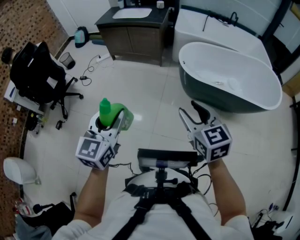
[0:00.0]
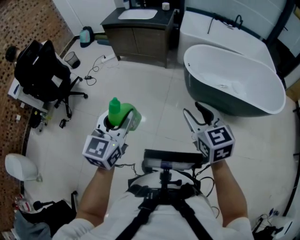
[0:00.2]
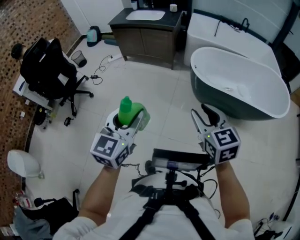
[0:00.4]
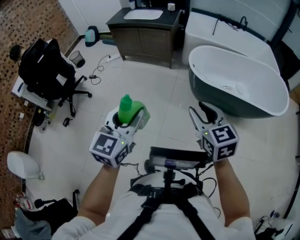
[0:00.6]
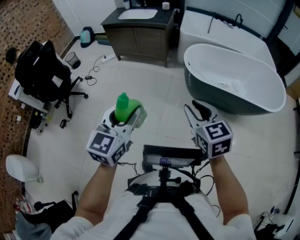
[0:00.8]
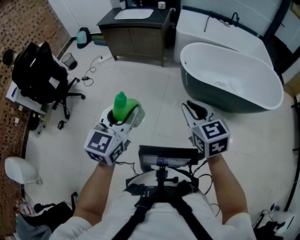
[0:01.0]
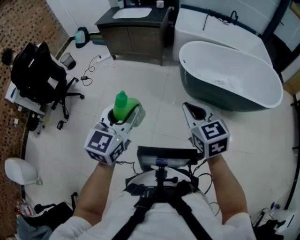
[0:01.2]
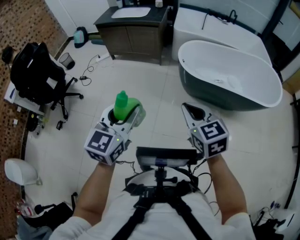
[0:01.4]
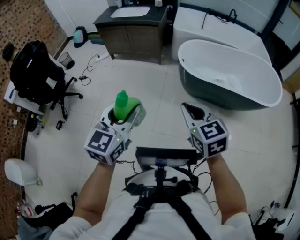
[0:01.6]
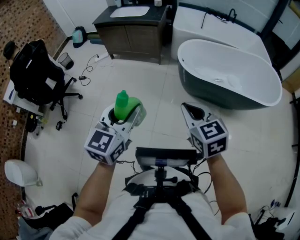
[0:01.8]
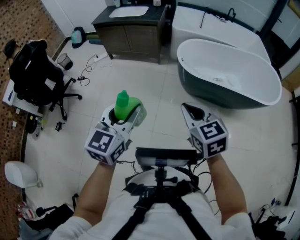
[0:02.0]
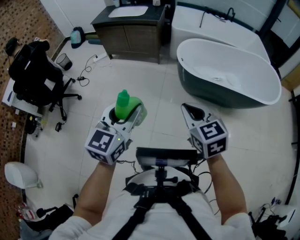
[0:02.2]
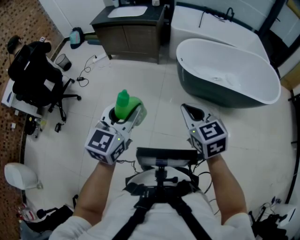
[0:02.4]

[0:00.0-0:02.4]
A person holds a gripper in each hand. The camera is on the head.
0:00.0 to 0:01.2: The right gripper closes; the left gripper shifts some 5 cm to the right.
0:01.2 to 0:02.4: The grippers move only a little.

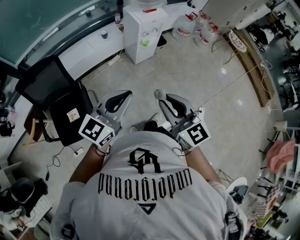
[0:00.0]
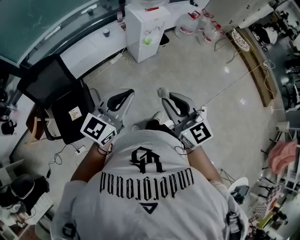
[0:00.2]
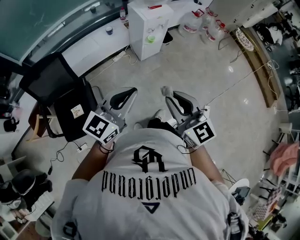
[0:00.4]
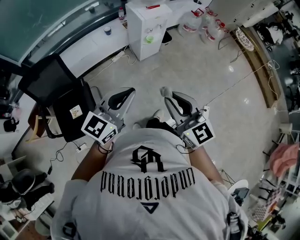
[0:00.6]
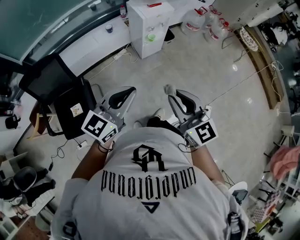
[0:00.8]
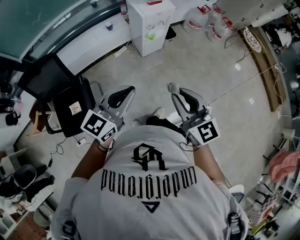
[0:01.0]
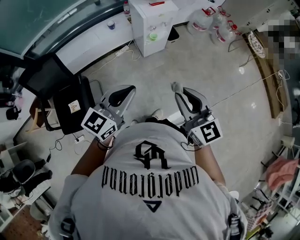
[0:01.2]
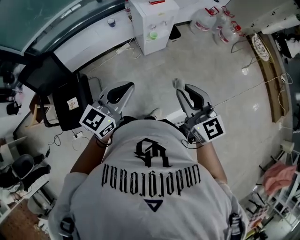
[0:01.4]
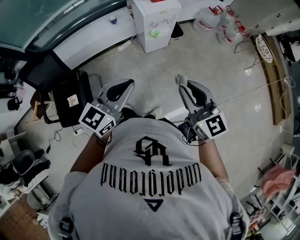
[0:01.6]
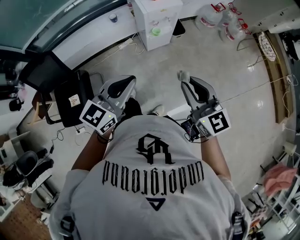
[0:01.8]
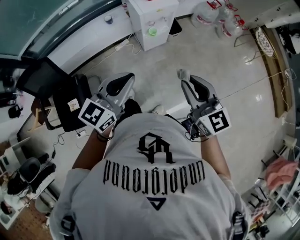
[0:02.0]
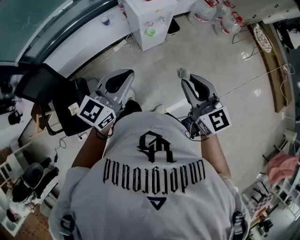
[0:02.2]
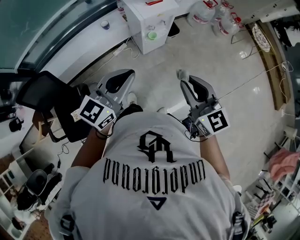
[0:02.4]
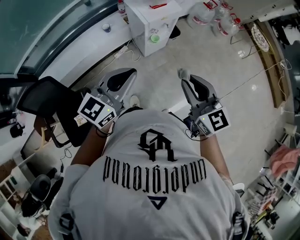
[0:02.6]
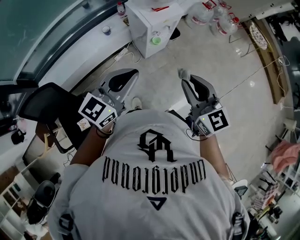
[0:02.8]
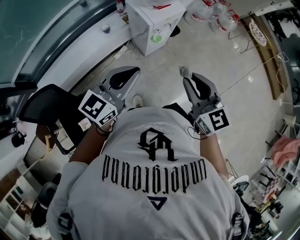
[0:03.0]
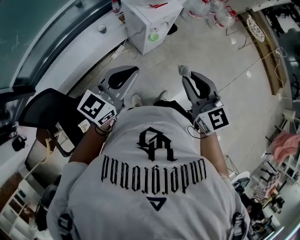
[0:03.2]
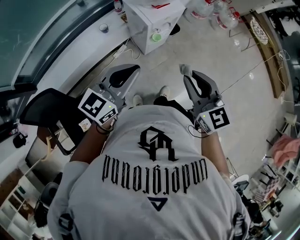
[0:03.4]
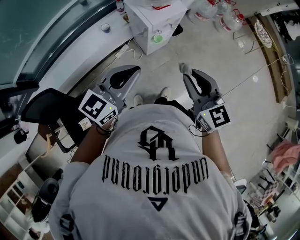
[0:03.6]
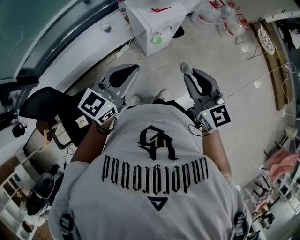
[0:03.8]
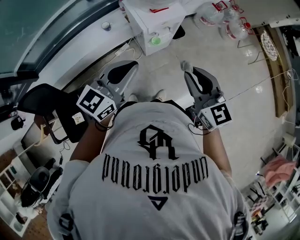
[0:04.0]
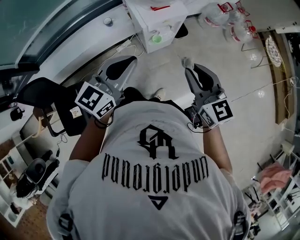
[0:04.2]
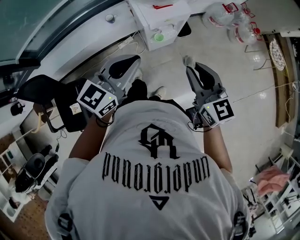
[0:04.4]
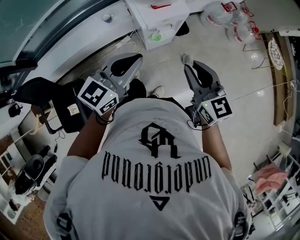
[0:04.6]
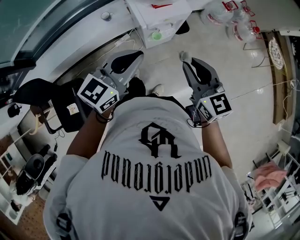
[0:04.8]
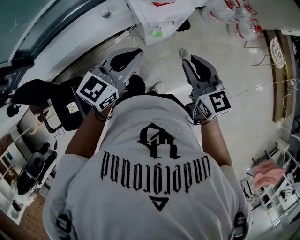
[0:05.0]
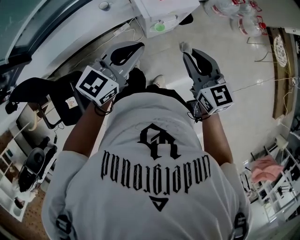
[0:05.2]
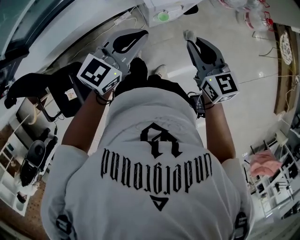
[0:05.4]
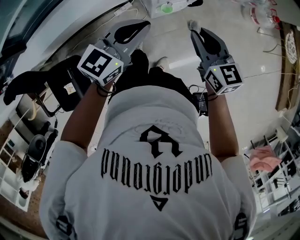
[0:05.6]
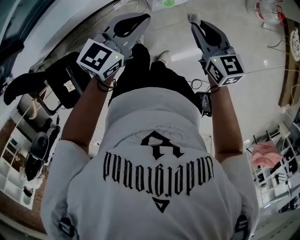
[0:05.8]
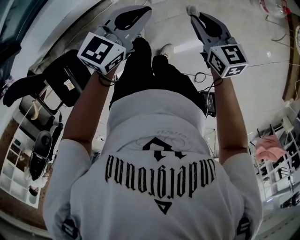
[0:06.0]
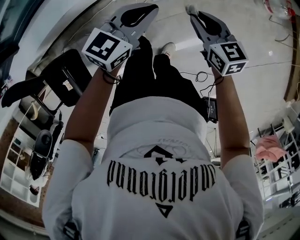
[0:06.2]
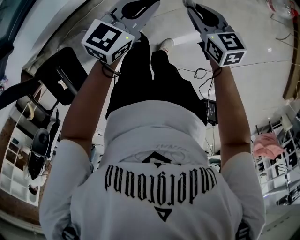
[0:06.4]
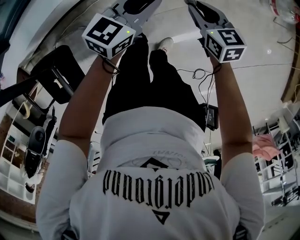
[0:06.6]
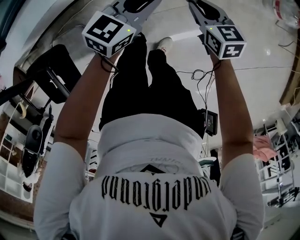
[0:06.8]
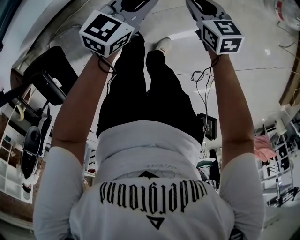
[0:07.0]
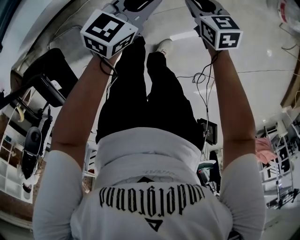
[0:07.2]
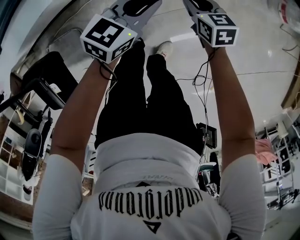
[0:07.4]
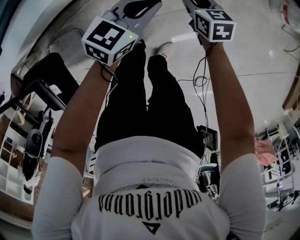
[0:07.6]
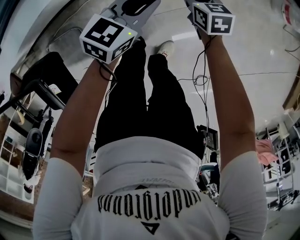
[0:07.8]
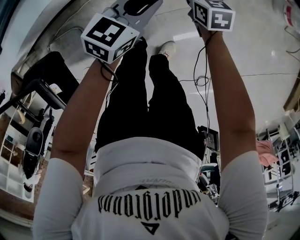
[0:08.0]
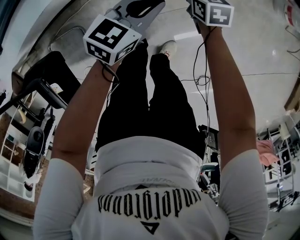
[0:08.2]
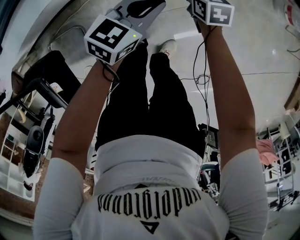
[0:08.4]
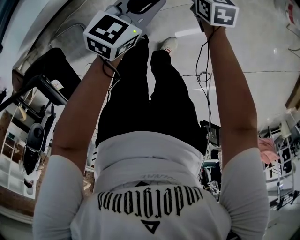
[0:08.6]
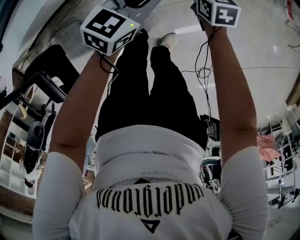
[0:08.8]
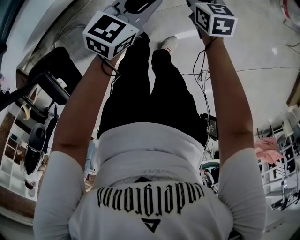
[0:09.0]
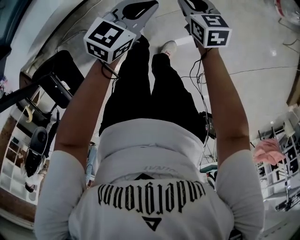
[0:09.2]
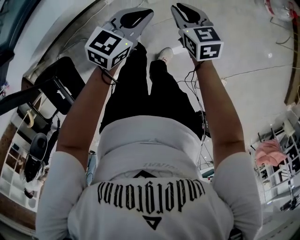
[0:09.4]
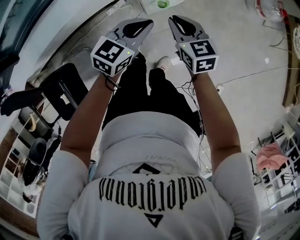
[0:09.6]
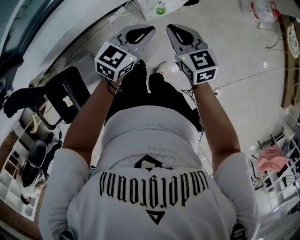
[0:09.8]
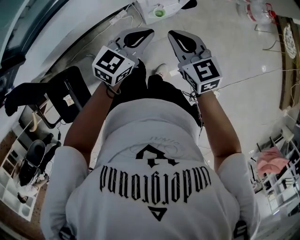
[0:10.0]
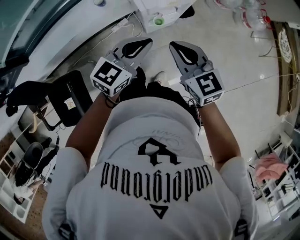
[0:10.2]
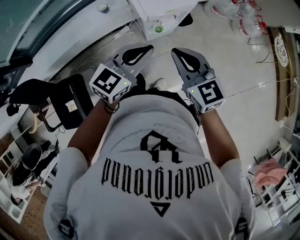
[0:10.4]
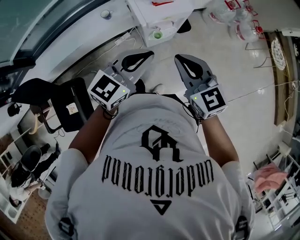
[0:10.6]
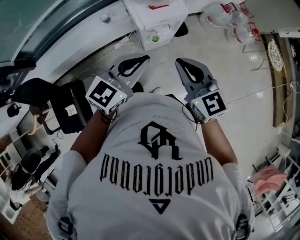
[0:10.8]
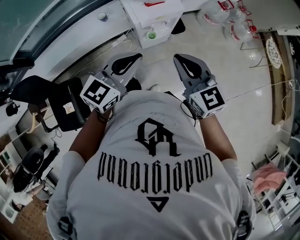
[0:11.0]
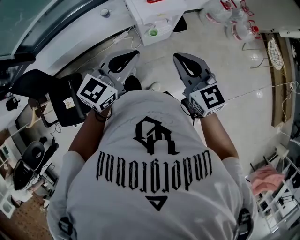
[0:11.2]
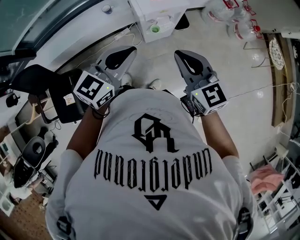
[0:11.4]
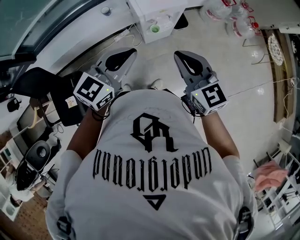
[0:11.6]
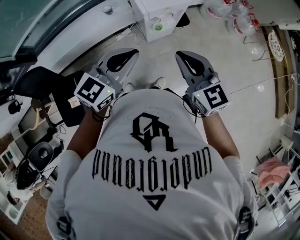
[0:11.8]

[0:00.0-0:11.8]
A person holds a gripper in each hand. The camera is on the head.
0:00.0 to 0:01.4: The left gripper goes roughly 15 cm forward and to the right, while the right gripper shifts roughly 20 cm to the right and forward.
0:01.4 to 0:03.0: Both grippers travel together forward and to the left, roughly 25 cm.
0:03.0 to 0:04.4: The grippers both shift forward and to the right by some 15 cm.
0:04.4 to 0:06.0: The two grippers go approximately 25 cm downward and forward.
0:06.0 to 0:07.4: Both grippers move downward, roughly 25 cm.
0:08.8 to 0:10.4: The right gripper travels upward and backward by about 50 cm, swivels some 30 degrees, and closes its fingers. Meanwhile the left gripper shifts approximately 35 cm upward.
0:10.4 to 0:11.8: The two grippers go some 10 cm backward and upward.

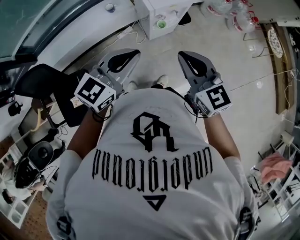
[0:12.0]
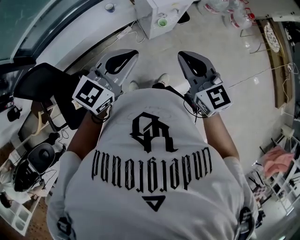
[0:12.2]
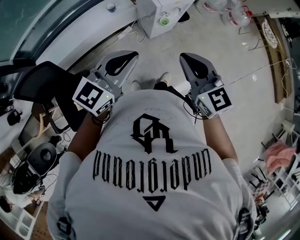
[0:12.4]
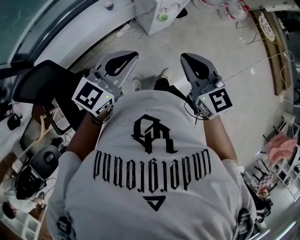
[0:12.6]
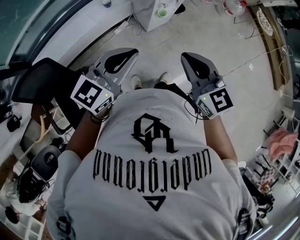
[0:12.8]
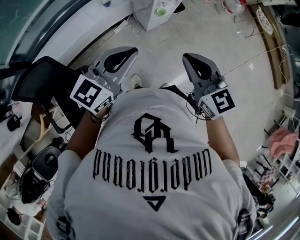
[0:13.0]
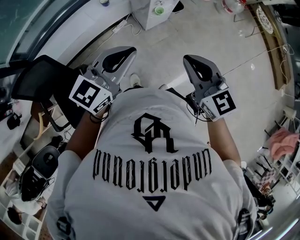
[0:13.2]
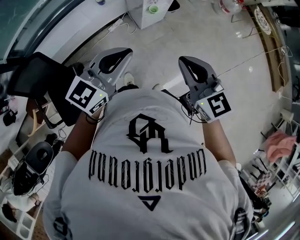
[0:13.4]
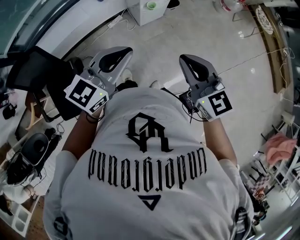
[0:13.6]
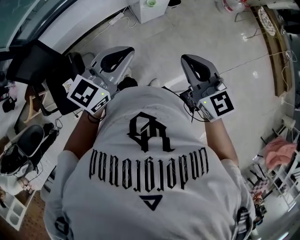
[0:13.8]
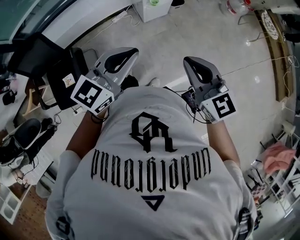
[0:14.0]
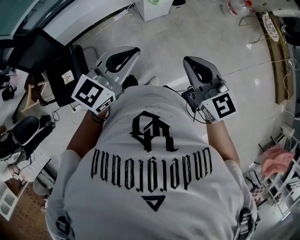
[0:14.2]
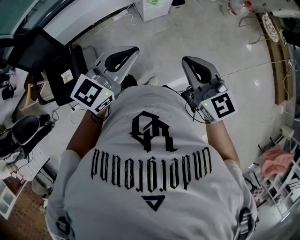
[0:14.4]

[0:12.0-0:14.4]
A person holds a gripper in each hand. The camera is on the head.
0:12.0 to 0:13.2: The right gripper is displaced backward by approximately 15 cm. Meanwhile the left gripper heads backward and to the left, covering approximately 15 cm.
0:13.2 to 0:14.4: The two grippers go about 20 cm to the right and backward.

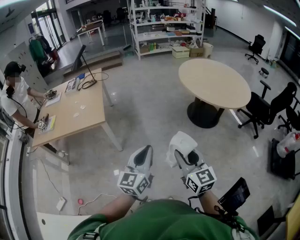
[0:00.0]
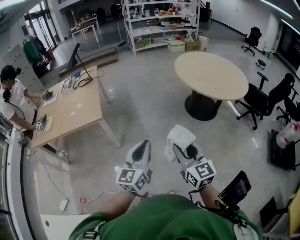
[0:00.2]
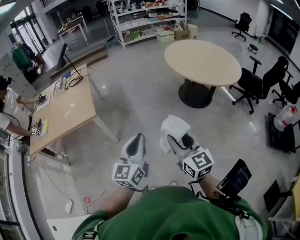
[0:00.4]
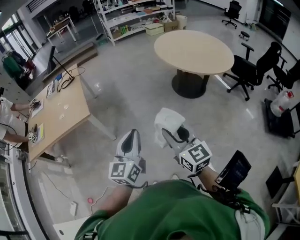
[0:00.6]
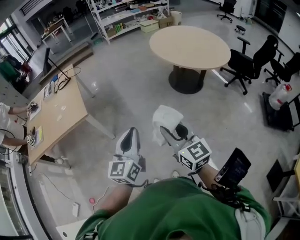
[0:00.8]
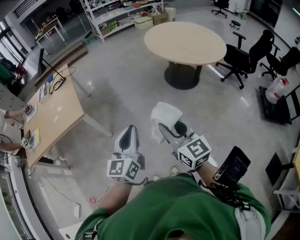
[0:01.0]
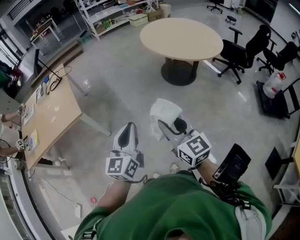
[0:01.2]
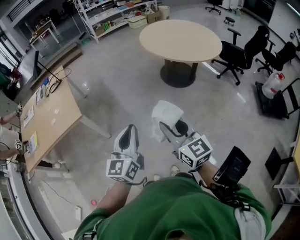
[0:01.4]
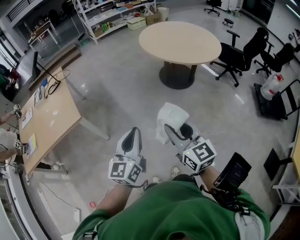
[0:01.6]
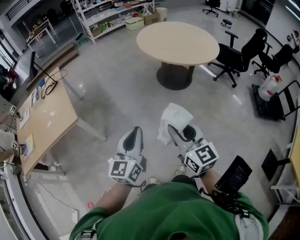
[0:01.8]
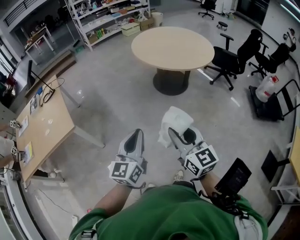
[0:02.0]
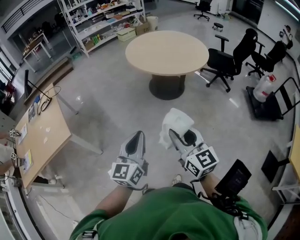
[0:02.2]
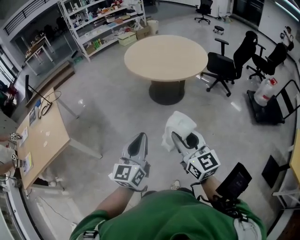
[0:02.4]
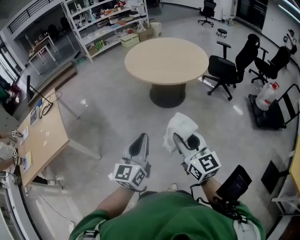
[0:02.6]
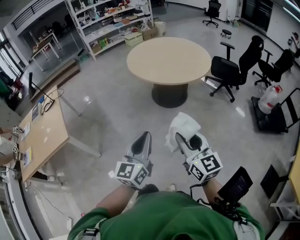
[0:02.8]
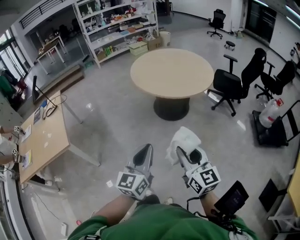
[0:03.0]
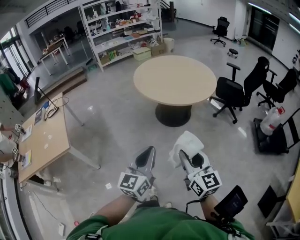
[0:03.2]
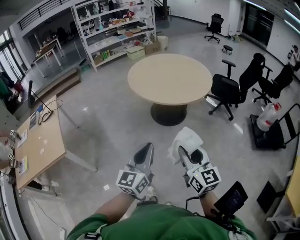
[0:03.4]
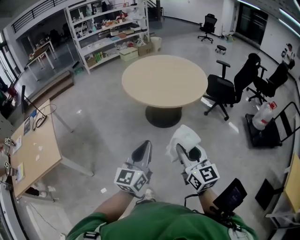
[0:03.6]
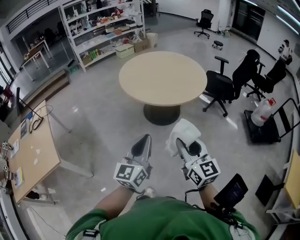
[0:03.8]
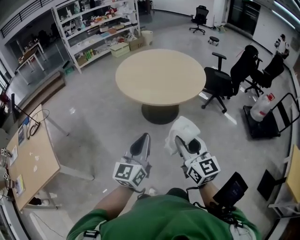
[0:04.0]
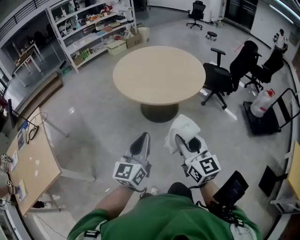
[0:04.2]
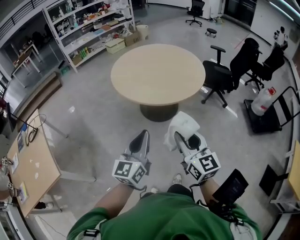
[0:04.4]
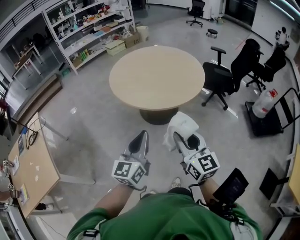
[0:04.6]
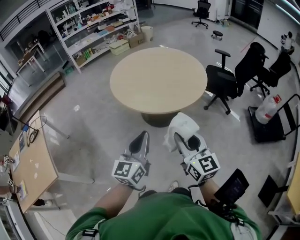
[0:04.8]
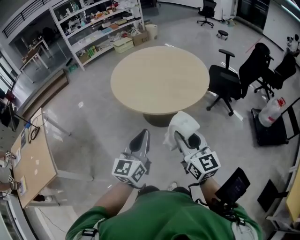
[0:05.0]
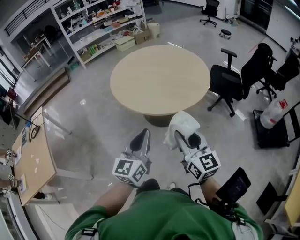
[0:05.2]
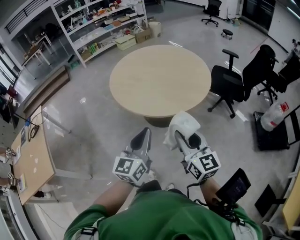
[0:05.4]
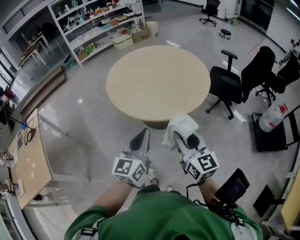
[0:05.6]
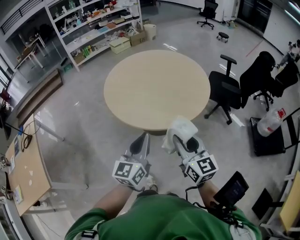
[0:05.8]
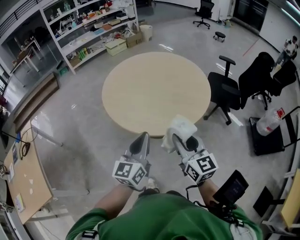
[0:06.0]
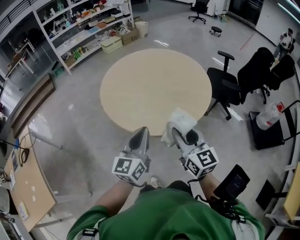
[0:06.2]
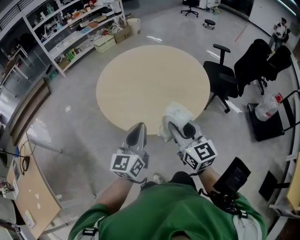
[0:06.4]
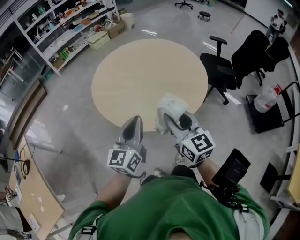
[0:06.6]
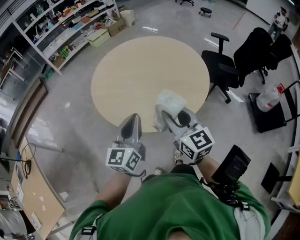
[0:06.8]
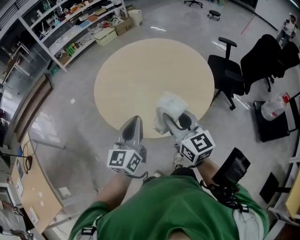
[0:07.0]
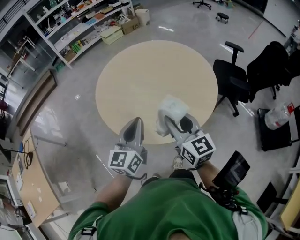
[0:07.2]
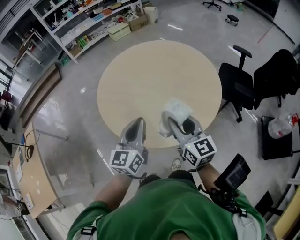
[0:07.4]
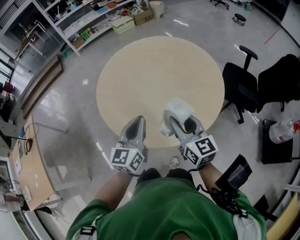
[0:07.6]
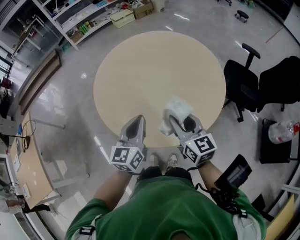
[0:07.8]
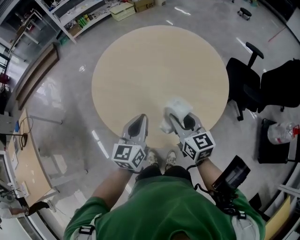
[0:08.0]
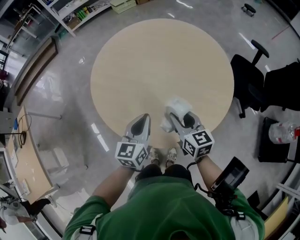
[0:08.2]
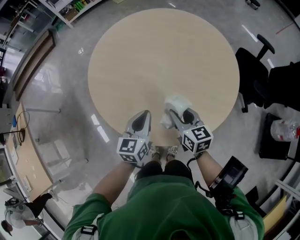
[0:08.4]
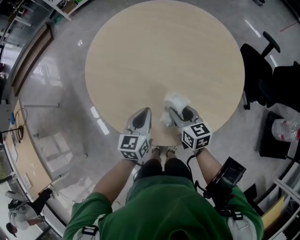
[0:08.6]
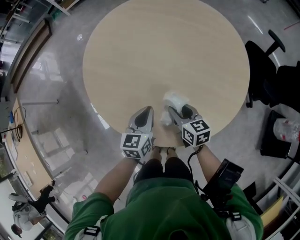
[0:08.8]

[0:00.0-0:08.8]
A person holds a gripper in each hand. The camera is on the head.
0:00.0 to 0:01.4: The grippers stay close to where they were, moving slightly.
0:01.4 to 0:03.0: Both grippers travel together to the right, approximately 25 cm.
0:03.0 to 0:04.4: Both grippers move forward, approximately 20 cm.
0:04.4 to 0:05.8: Both grippers travel together forward and to the right, approximately 20 cm.
0:05.8 to 0:07.4: Both grippers travel together forward, roughly 25 cm.
0:07.4 to 0:08.8: The two grippers go approximately 30 cm downward and forward. The right gripper changes its angle by about 30 degrees. Meanwhile the left gripper rotates about 30 degrees.
